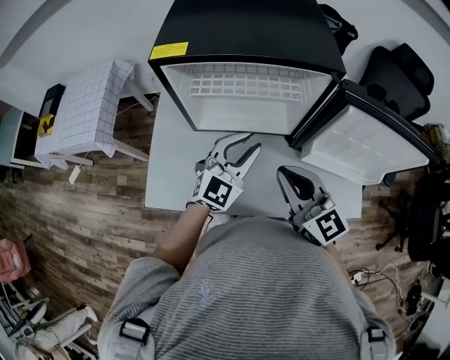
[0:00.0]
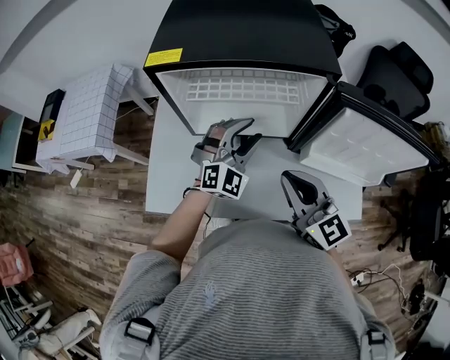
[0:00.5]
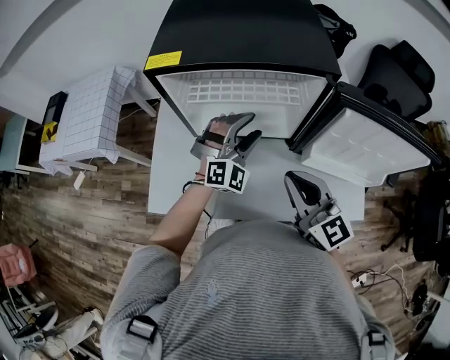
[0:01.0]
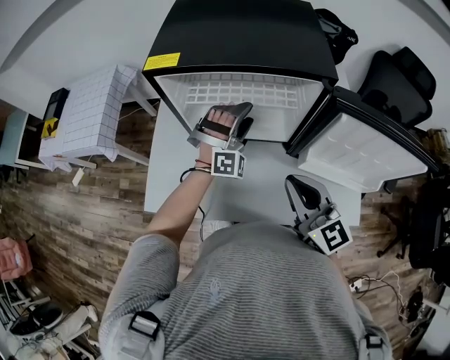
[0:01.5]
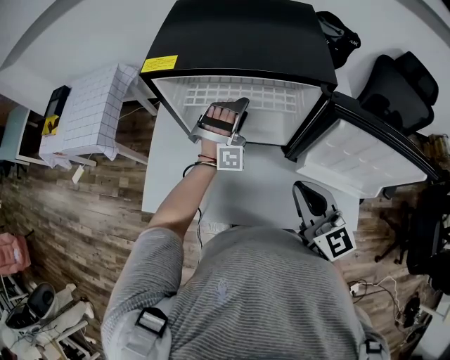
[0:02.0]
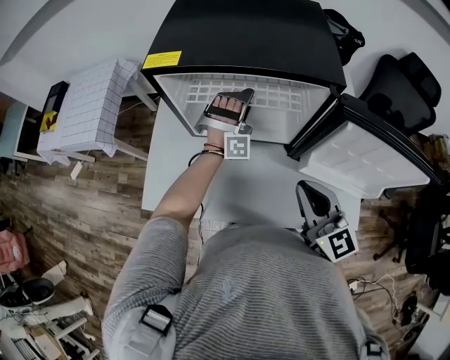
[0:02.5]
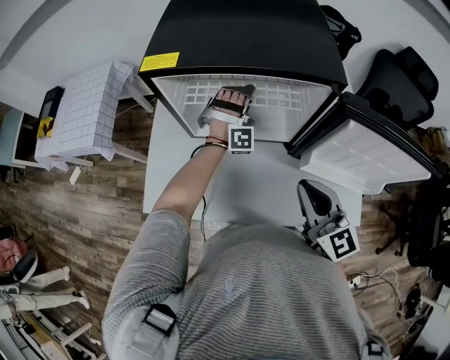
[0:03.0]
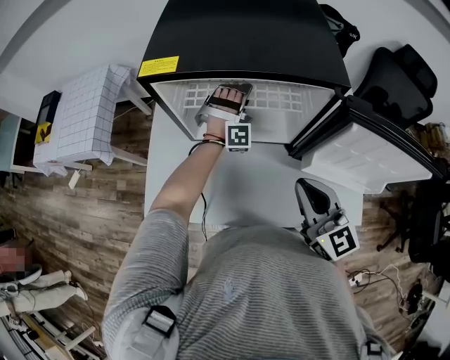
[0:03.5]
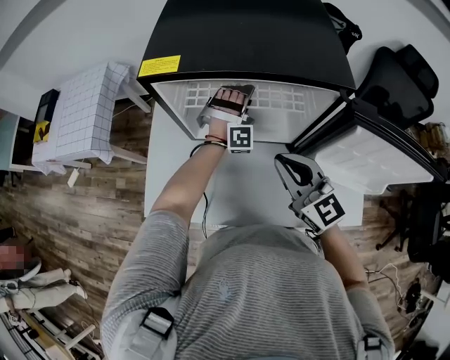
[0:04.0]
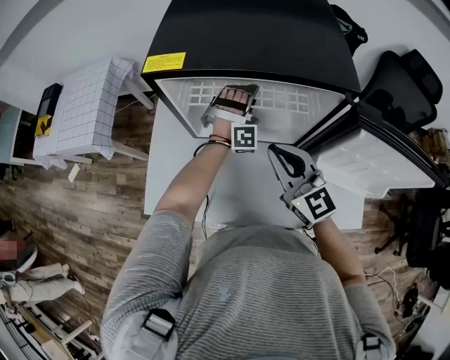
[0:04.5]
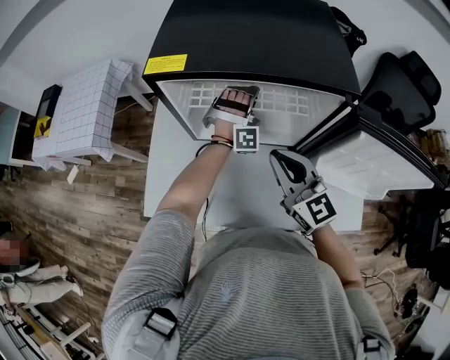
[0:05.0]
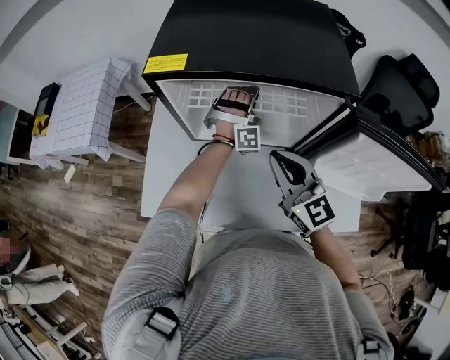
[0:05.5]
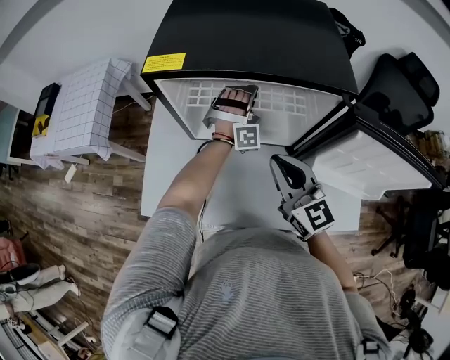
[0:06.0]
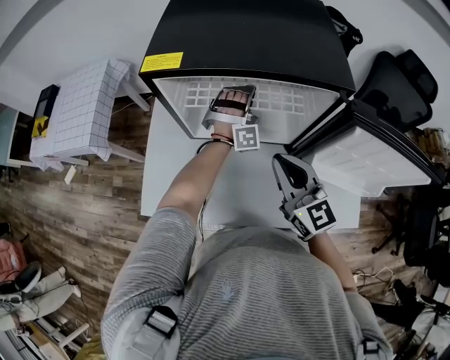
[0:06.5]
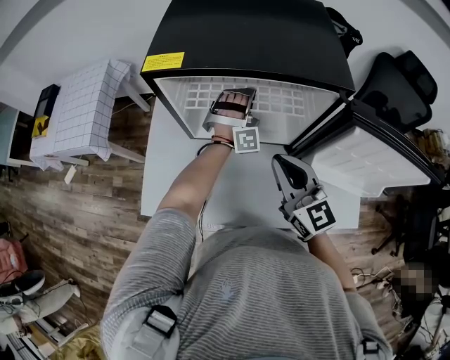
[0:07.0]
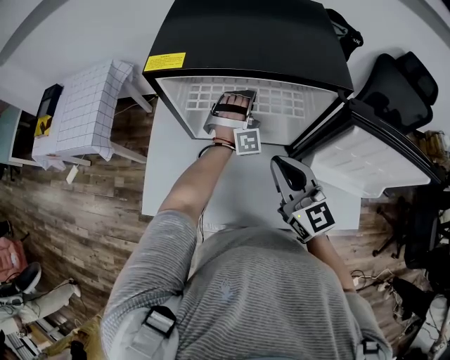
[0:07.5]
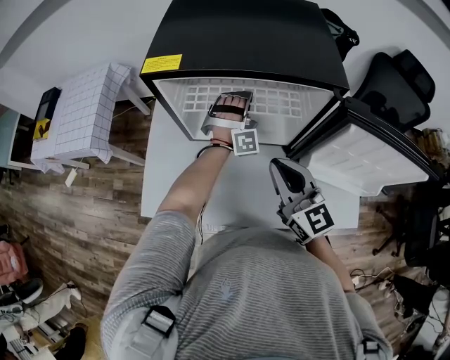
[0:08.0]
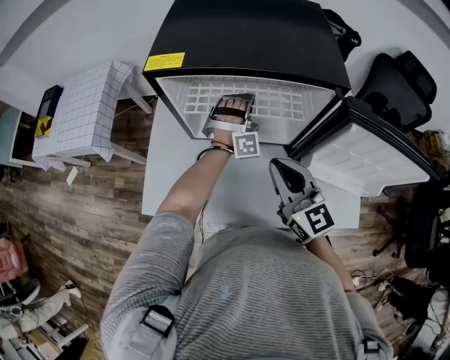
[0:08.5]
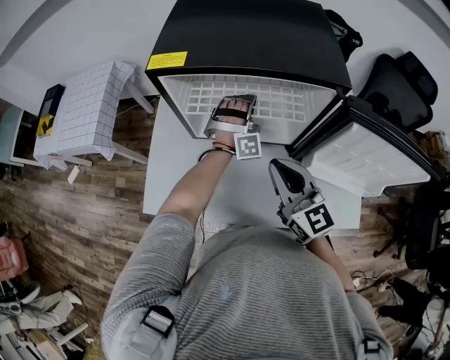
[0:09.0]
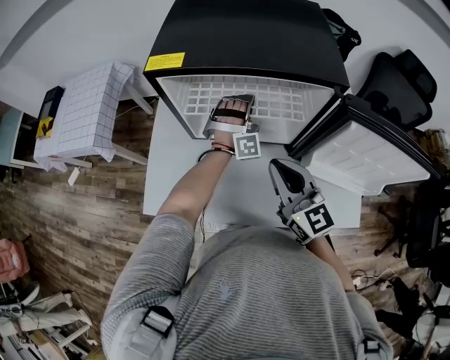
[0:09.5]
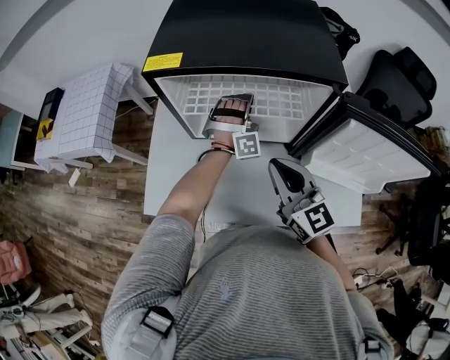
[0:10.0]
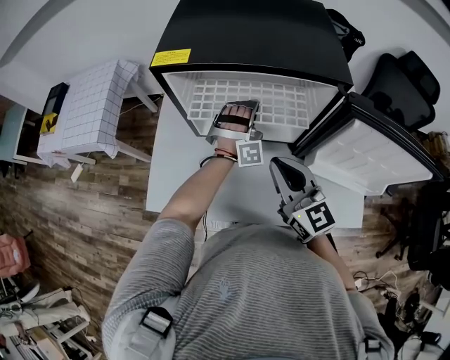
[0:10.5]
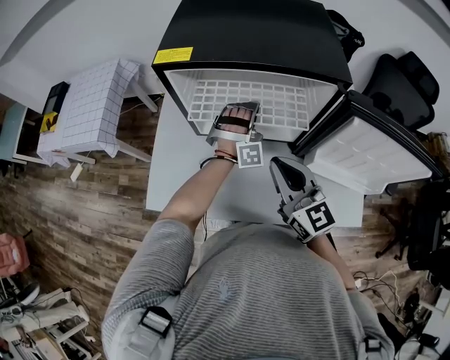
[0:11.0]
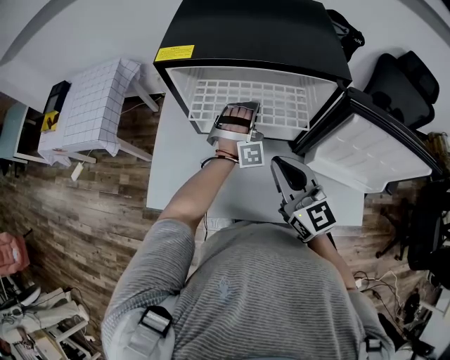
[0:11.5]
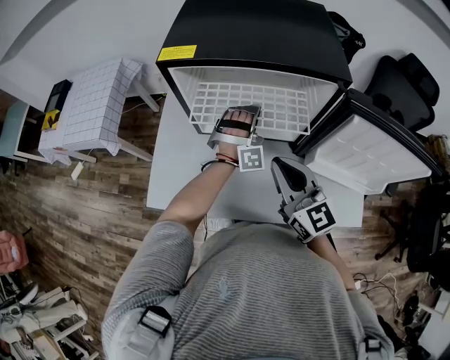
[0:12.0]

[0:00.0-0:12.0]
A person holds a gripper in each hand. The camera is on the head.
0:00.0 to 0:02.0: The left gripper goes some 15 cm forward, twists approximately 60 degrees clockwise, seen from behind, and opens its fingers. Meanwhile the right gripper shifts about 10 cm to the right.
0:02.0 to 0:04.0: The right gripper goes approximately 10 cm forward and to the left, while the left gripper is displaced forward by about 5 cm.
0:04.0 to 0:06.0: The left gripper closes.
0:06.0 to 0:10.0: The grippers move only a little.
0:10.0 to 0:12.0: The left gripper changes place by roughly 5 cm.

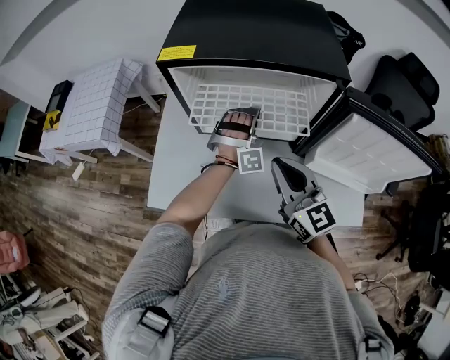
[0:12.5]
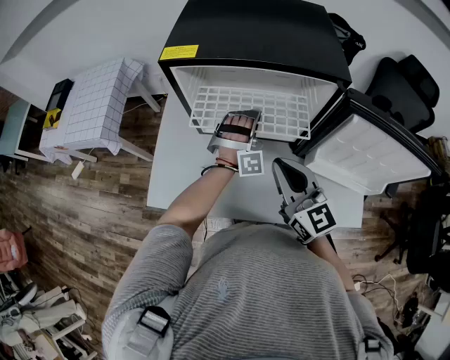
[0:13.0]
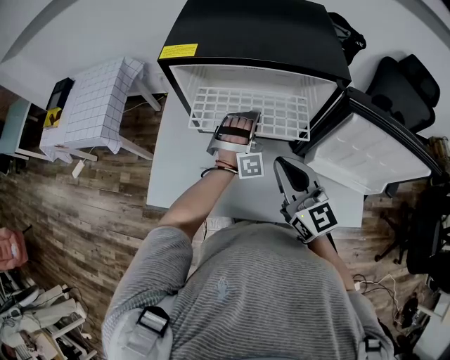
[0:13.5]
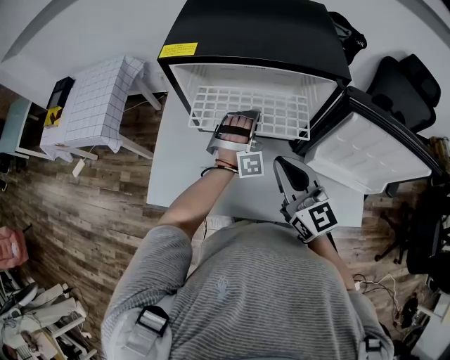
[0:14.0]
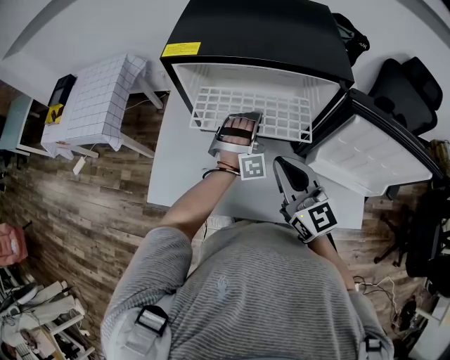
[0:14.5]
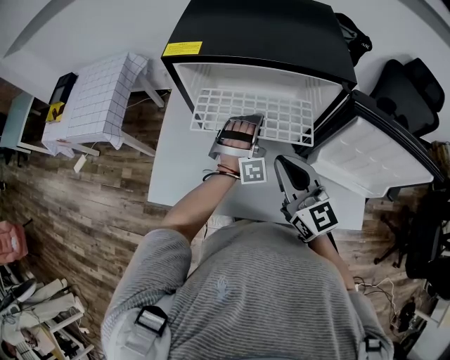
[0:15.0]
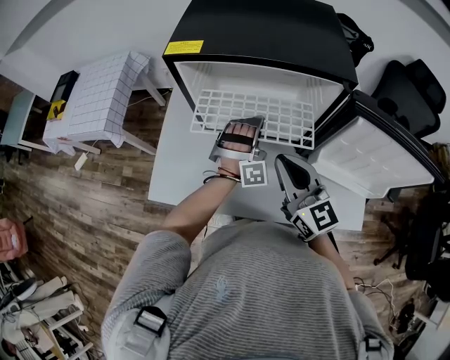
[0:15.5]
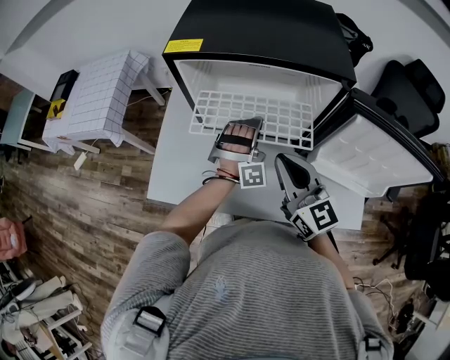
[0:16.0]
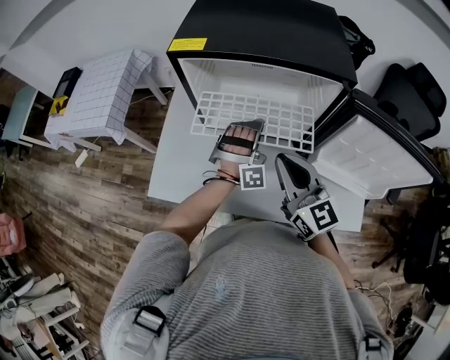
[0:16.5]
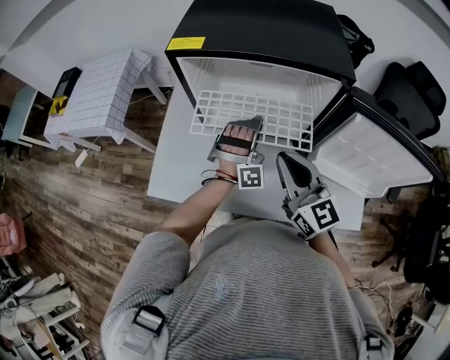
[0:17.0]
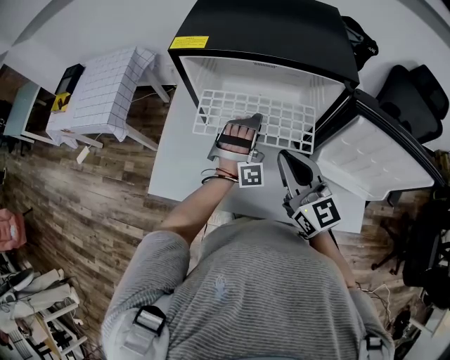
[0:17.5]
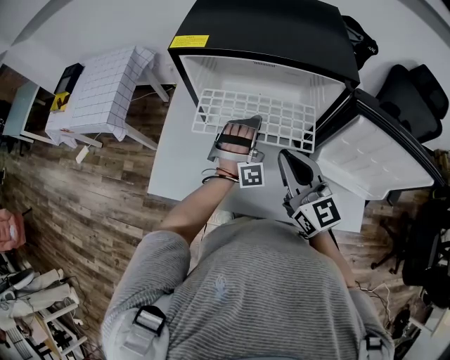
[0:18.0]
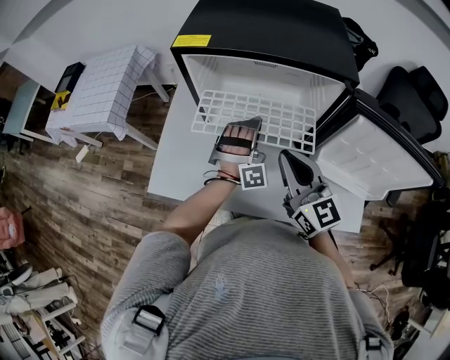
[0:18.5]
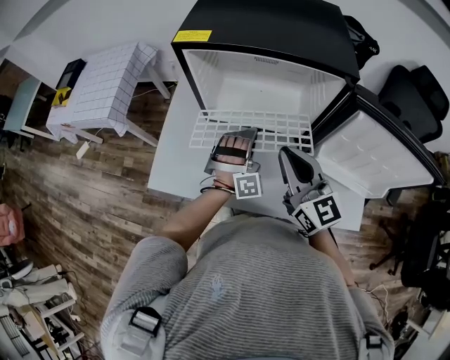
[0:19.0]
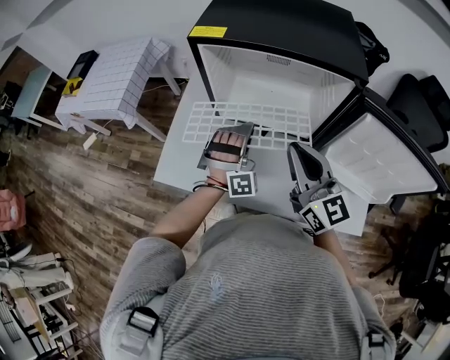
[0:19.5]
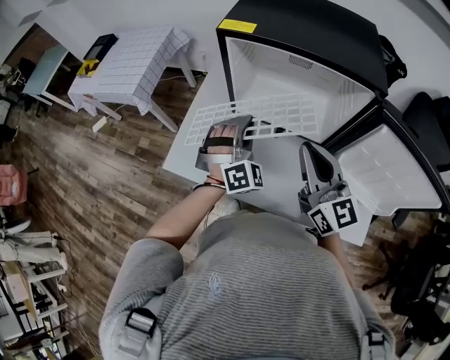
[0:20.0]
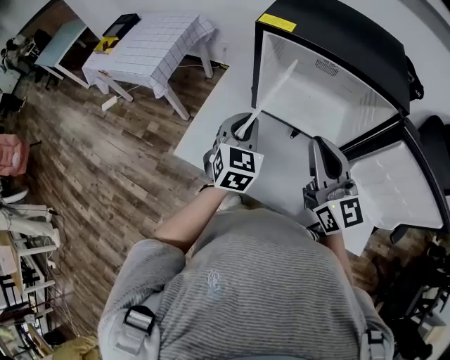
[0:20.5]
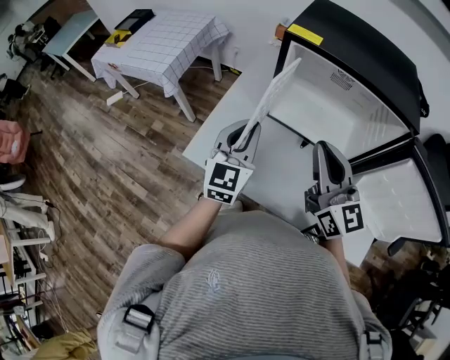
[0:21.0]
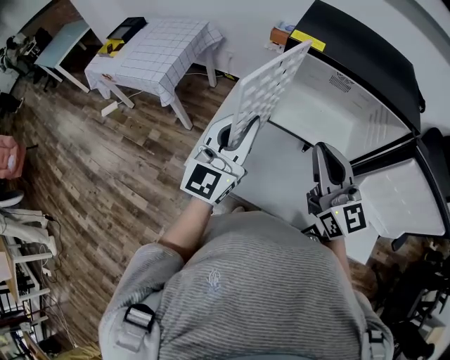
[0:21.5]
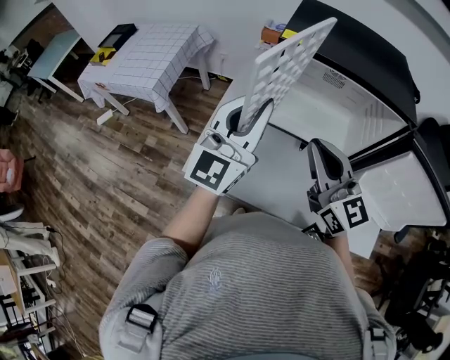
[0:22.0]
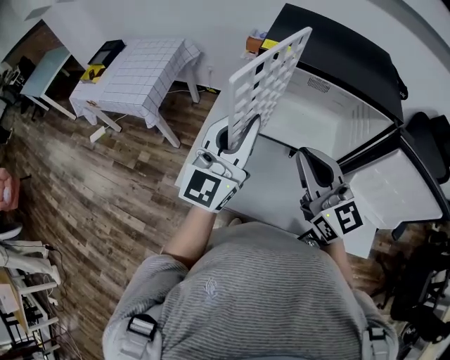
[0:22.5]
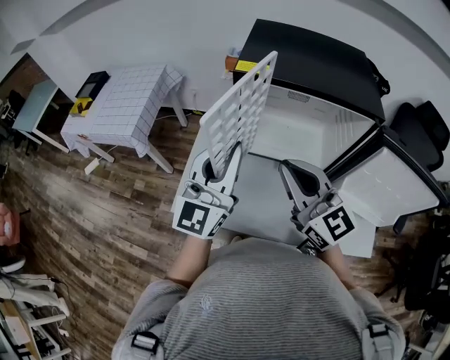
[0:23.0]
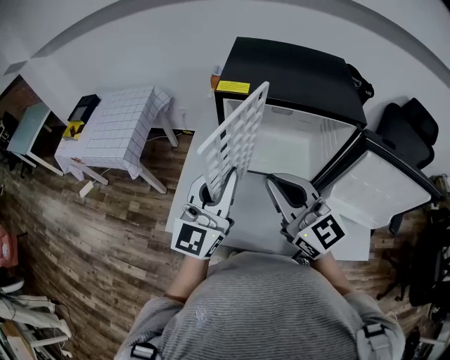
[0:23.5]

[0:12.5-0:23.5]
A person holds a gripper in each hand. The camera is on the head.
0:12.5 to 0:16.0: The grippers stay close to where they were, moving slightly.
0:16.0 to 0:18.0: The left gripper opens, then closes once more.
0:18.0 to 0:20.0: The left gripper heads to the left and upward, covering about 15 cm, and rotates roughly 30 degrees.
0:20.0 to 0:21.5: The left gripper is displaced to the left and upward by about 20 cm, and twists about 60 degrees counterclockwise, seen from behind. Meanwhile the right gripper is displaced to the left by roughly 10 cm.
0:21.5 to 0:23.5: The left gripper moves to the right, some 5 cm.

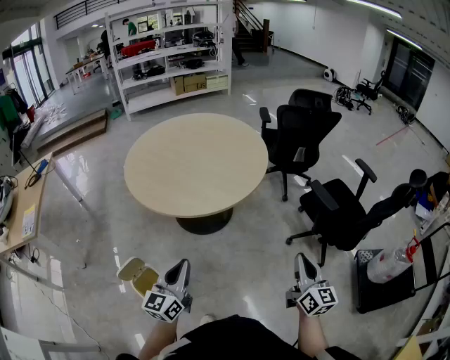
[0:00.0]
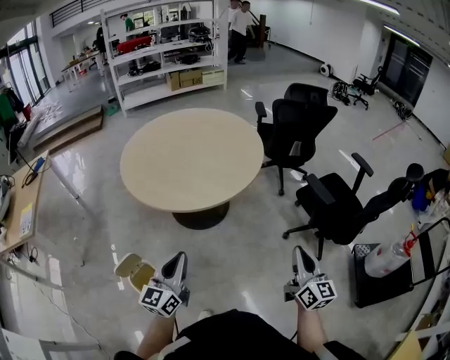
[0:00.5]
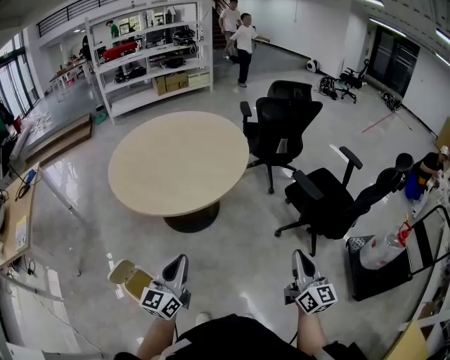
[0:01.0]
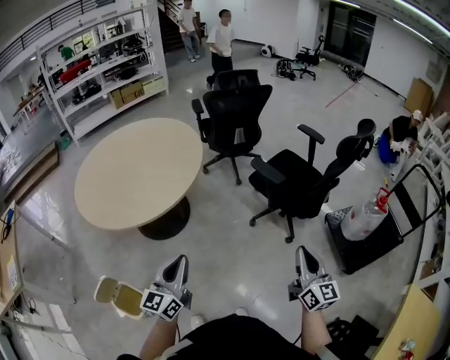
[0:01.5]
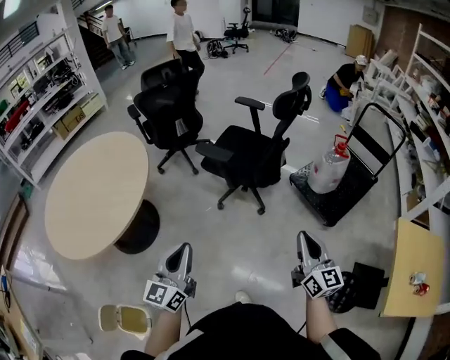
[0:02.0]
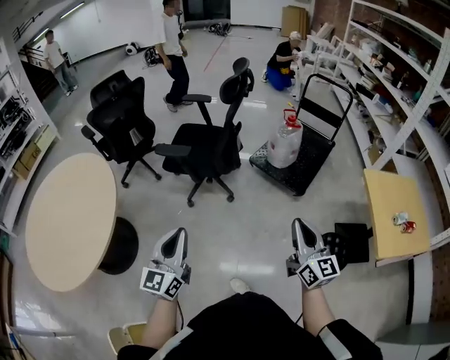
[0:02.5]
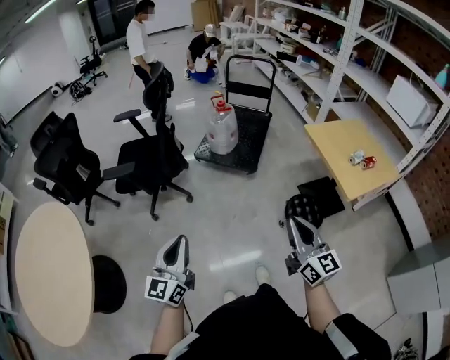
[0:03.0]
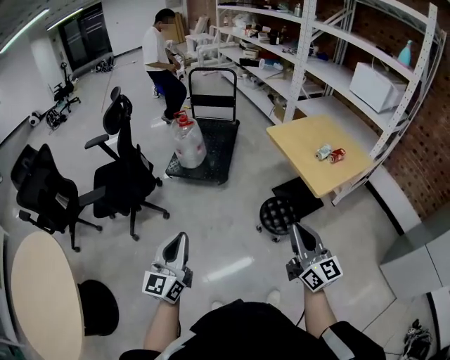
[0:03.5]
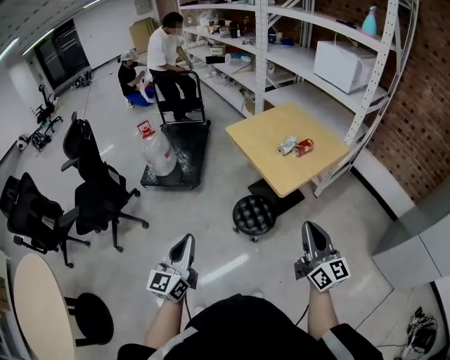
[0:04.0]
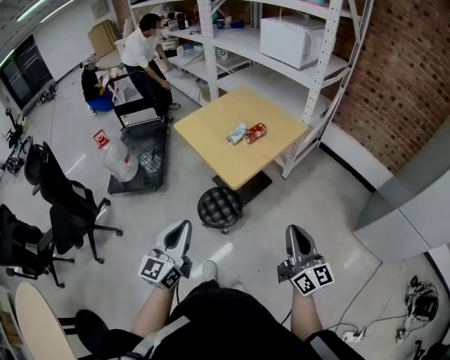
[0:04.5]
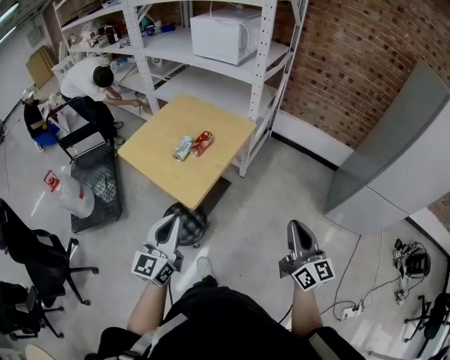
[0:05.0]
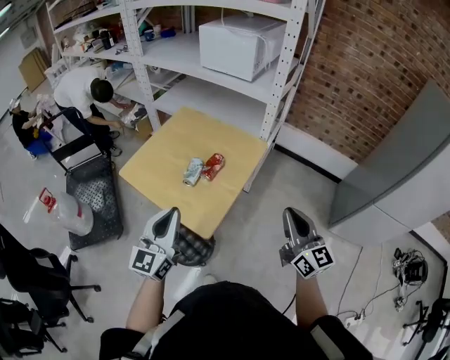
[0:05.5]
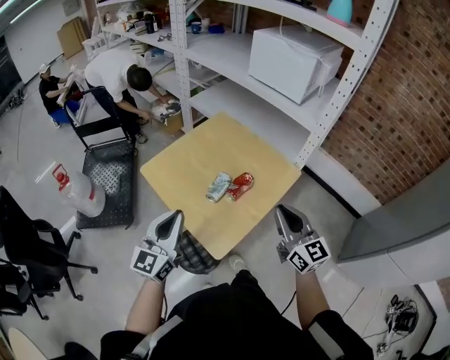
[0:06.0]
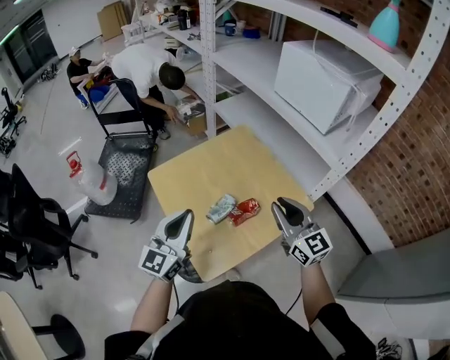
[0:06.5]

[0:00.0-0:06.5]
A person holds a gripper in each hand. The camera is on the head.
0:00.0 to 0:02.0: The left gripper changes place by roughly 30 cm, and rotates roughly 40 degrees, while the right gripper shifts by roughly 35 cm, and rotates roughly 30 degrees.
0:02.0 to 0:04.5: Both grippers are carried roughly 70 cm. The left gripper changes its angle by about 70 degrees; the right gripper rotates some 60 degrees.
0:04.5 to 0:06.5: The two grippers travel together, about 50 cm. The right gripper turns by about 30 degrees.
